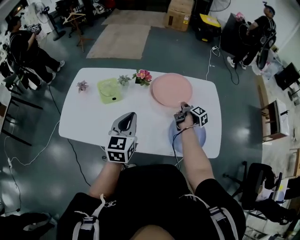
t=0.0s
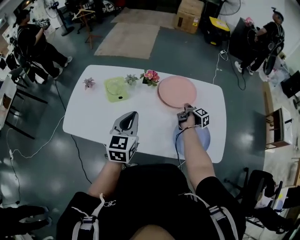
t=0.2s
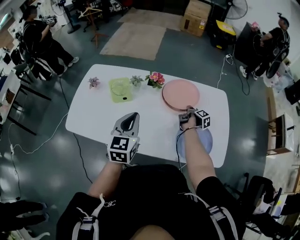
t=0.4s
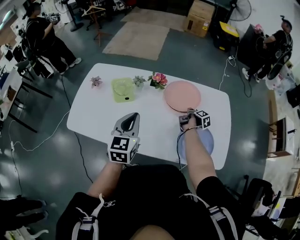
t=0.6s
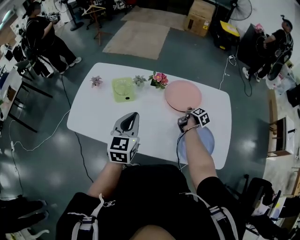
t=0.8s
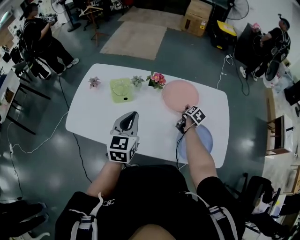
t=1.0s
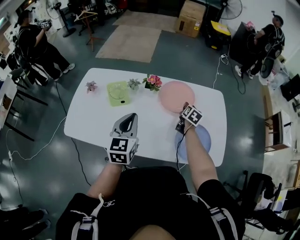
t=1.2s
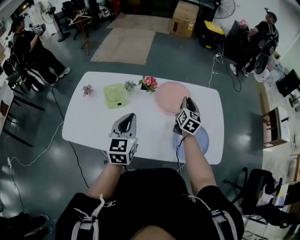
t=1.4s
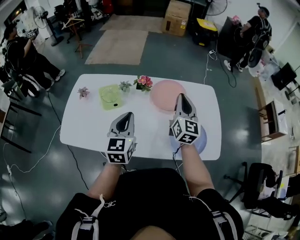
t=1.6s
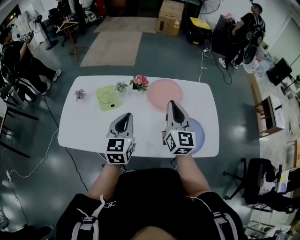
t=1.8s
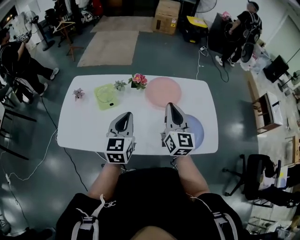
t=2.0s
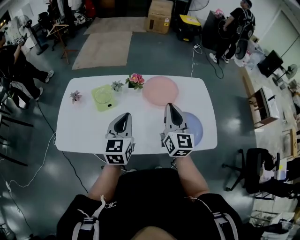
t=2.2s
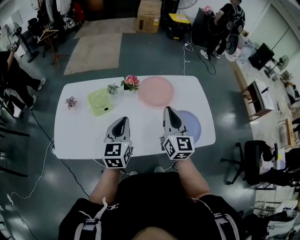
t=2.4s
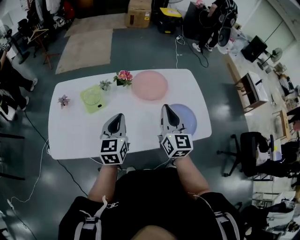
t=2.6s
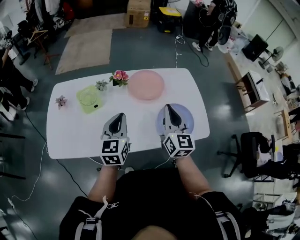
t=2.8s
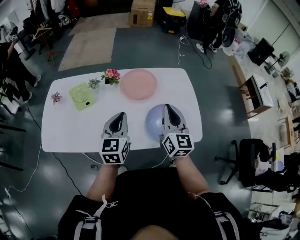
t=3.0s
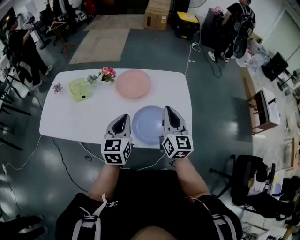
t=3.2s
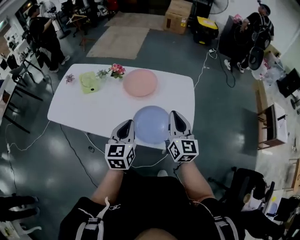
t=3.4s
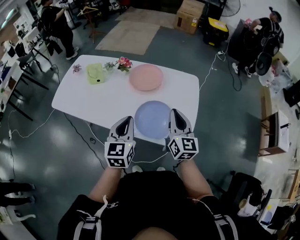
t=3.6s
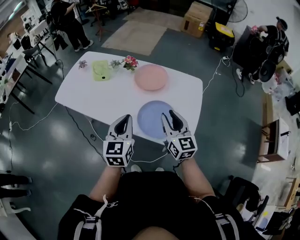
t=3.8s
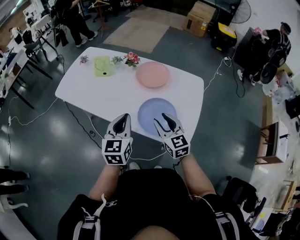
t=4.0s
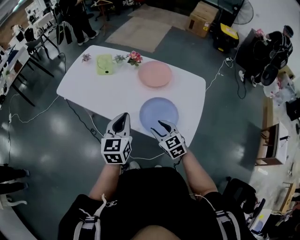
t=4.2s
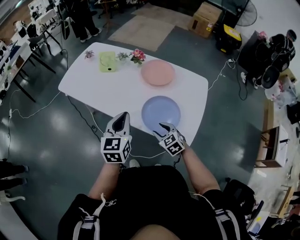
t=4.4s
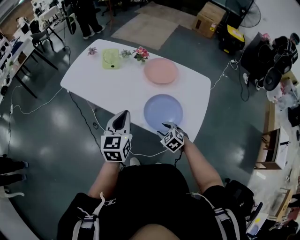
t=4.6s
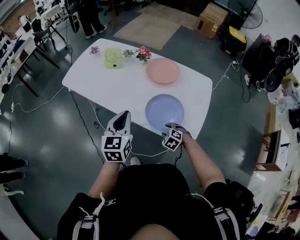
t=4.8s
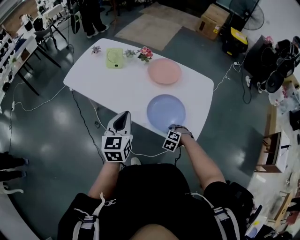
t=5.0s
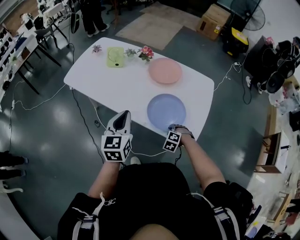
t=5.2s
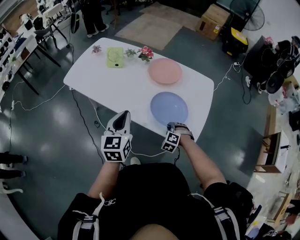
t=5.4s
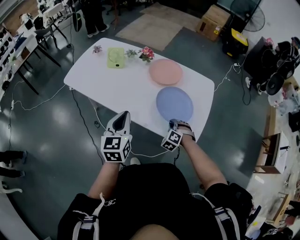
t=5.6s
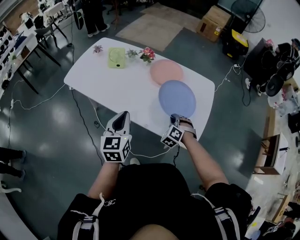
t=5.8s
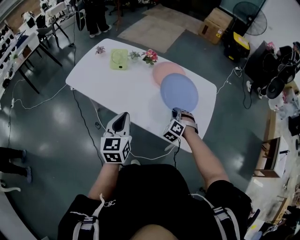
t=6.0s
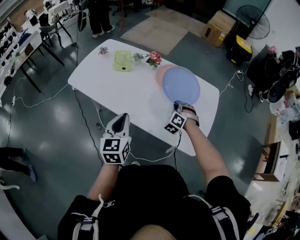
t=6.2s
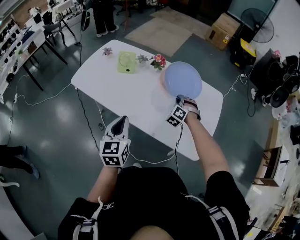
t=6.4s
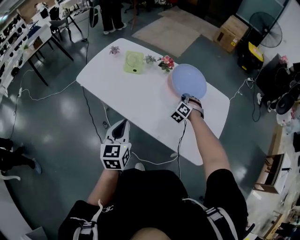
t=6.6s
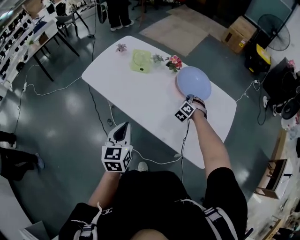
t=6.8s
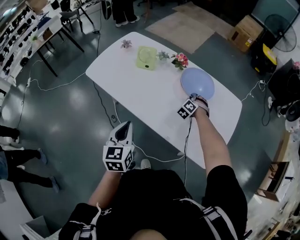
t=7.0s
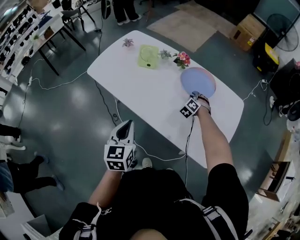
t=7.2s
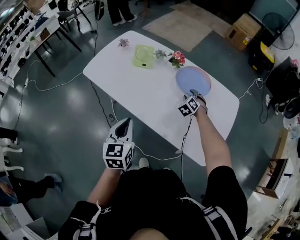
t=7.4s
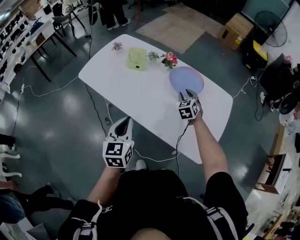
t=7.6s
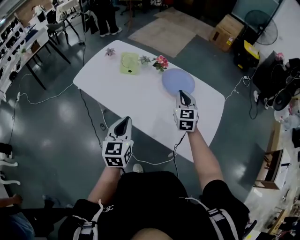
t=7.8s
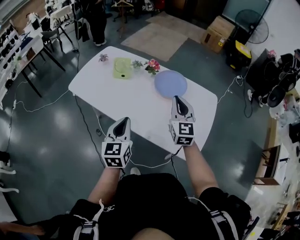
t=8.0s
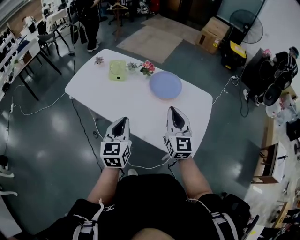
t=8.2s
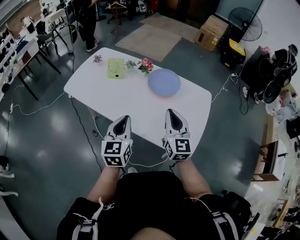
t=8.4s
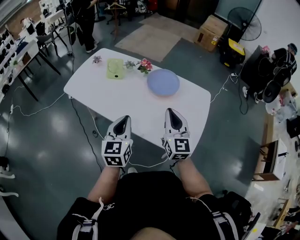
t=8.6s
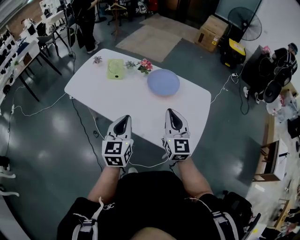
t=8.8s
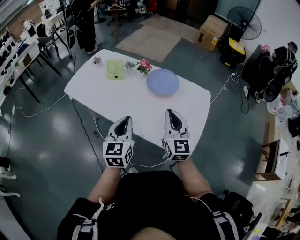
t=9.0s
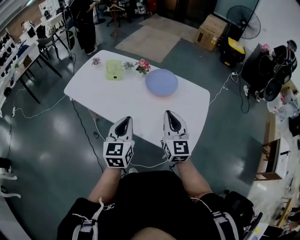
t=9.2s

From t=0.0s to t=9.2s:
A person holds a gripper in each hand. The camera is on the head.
From t=0.0s to t=1.6s: The right gripper heads upward, covering roughly 25 cm, rolls counterclockwise, seen from behind, by approximately 70 degrees, and opens, then closes again.
From t=1.6s to t=3.0s: The left gripper travels to the right by about 10 cm, while the right gripper heads backward and to the right, covering about 15 cm.
From t=3.0s to t=4.6s: The right gripper travels downward by roughly 25 cm, tilts its fingers approximately 50 degrees downward, and opens its fingers, while the left gripper moves roughly 20 cm, and rotates some 30 degrees.
From t=4.6s to t=6.2s: The right gripper is displaced forward and upward by about 20 cm, swivels approximately 40 degrees, and closes up. Meanwhile the left gripper is displaced to the left by about 5 cm.
From t=6.2s to t=7.6s: The right gripper is displaced forward and to the left by approximately 10 cm, turns by approximately 40 degrees, and opens.
From t=7.6s to t=9.2s: The left gripper goes roughly 15 cm to the right, while the right gripper is displaced backward and upward by approximately 30 cm, tilts its fingers roughly 30 degrees upward, and closes its fingers.

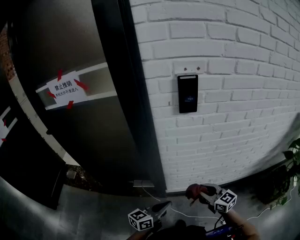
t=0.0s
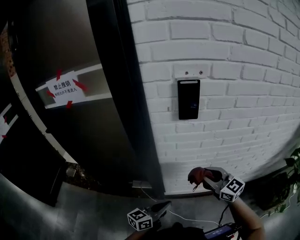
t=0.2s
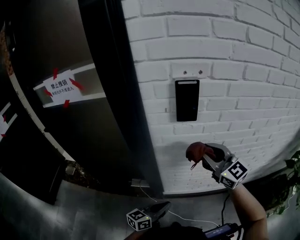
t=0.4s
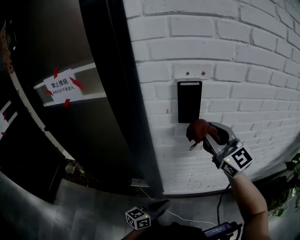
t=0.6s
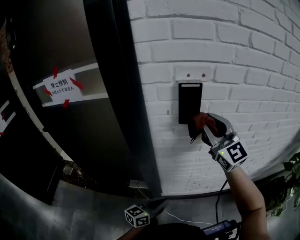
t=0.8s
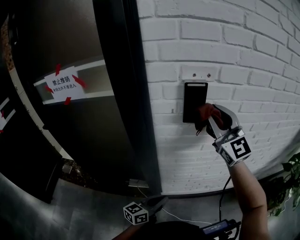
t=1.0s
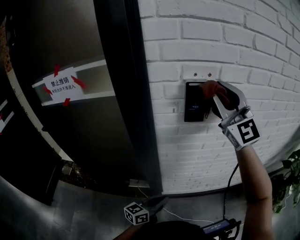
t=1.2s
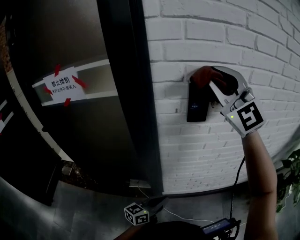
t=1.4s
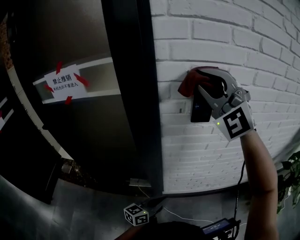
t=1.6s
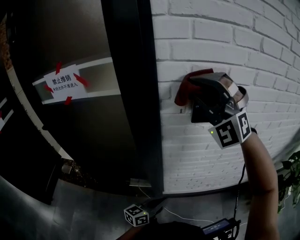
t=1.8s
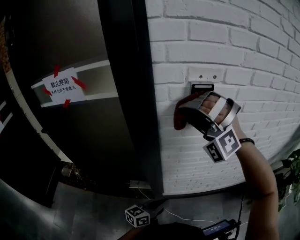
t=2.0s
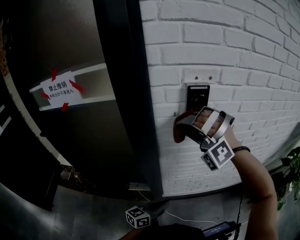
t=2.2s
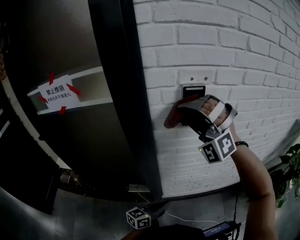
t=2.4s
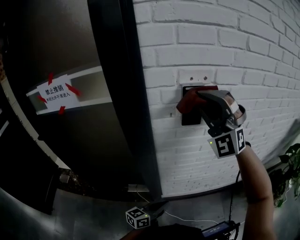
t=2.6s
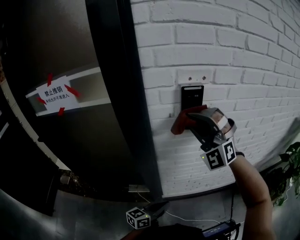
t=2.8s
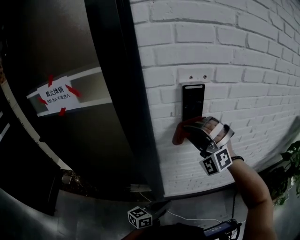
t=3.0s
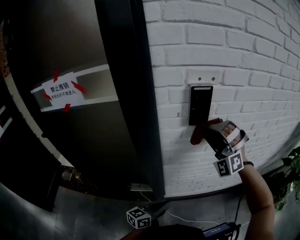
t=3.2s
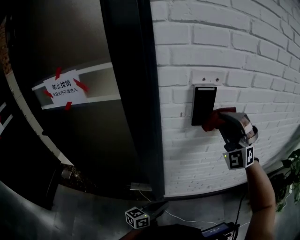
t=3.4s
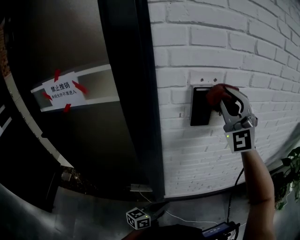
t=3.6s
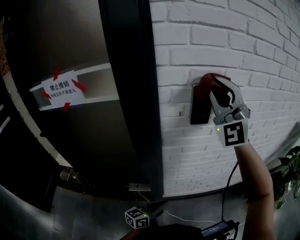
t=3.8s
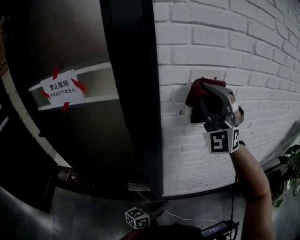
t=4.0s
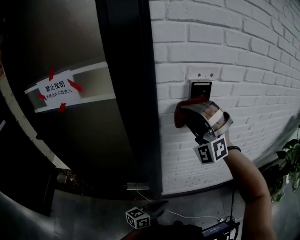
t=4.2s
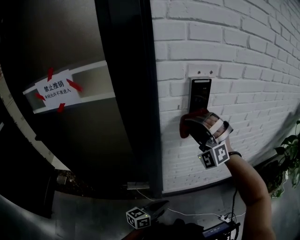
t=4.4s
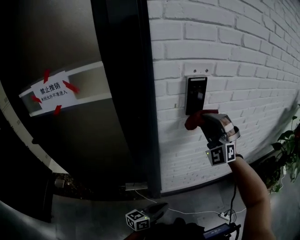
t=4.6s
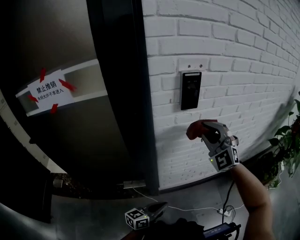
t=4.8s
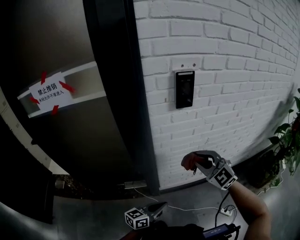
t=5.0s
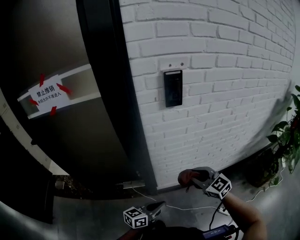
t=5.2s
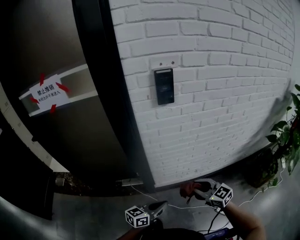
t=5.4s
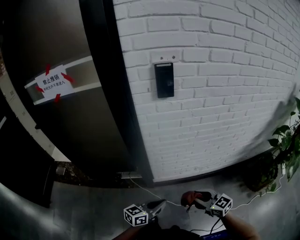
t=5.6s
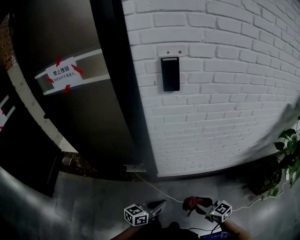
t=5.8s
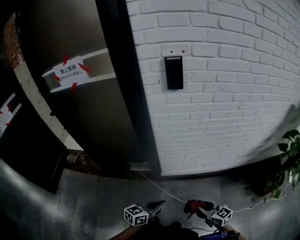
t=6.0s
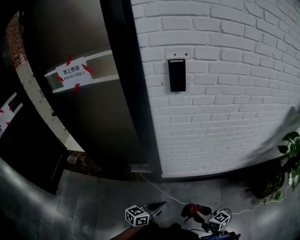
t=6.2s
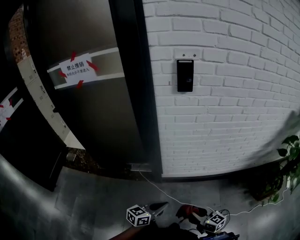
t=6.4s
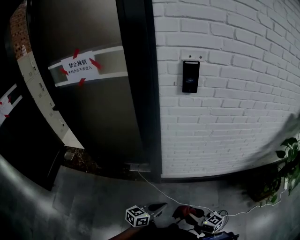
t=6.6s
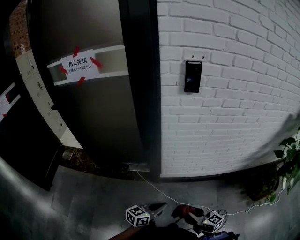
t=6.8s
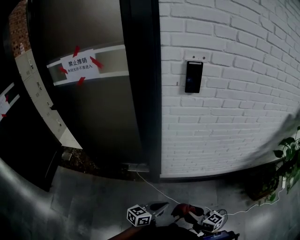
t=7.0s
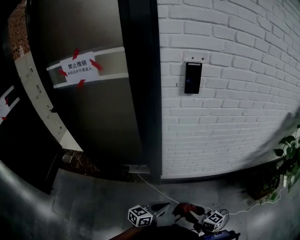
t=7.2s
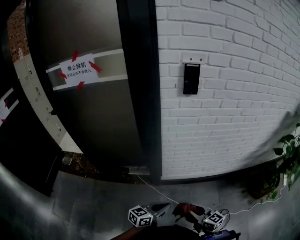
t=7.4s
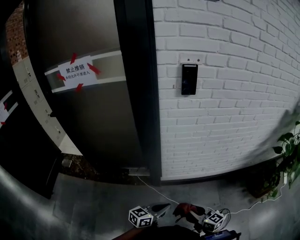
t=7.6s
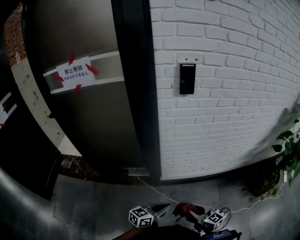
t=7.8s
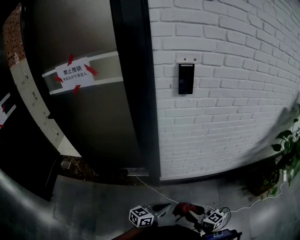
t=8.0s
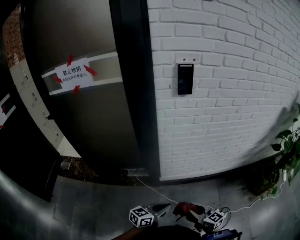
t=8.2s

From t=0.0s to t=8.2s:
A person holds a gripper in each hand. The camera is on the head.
From t=0.0s to t=1.6s: The left gripper is displaced forward by approximately 5 cm. The right gripper moves upward, approximately 50 cm, and rotates around the line of its fingers by roughly 80 degrees, counterclockwise from behind.
From t=1.6s to t=3.2s: The right gripper moves up and down over roughly 20 cm, changing direction 2 times, and rotates about 30 degrees.
From t=3.2s to t=5.0s: The right gripper shifts some 20 cm backward and downward, and rotates around the line of its fingers by roughly 50 degrees, clockwise from behind, while the left gripper travels backward by about 10 cm.
From t=5.0s to t=6.6s: The left gripper moves backward and to the right, roughly 15 cm. Meanwhile the right gripper goes roughly 35 cm backward and downward, and rotates around the line of its fingers by some 60 degrees, clockwise from behind.
From t=6.6s to t=8.2s: There are only small adjustments of the grippers.

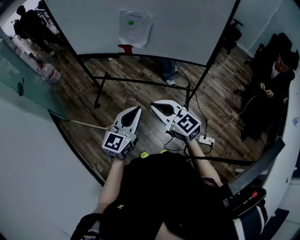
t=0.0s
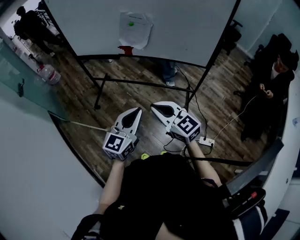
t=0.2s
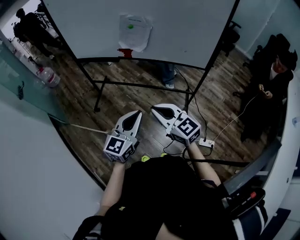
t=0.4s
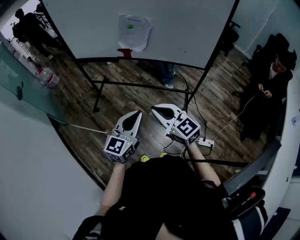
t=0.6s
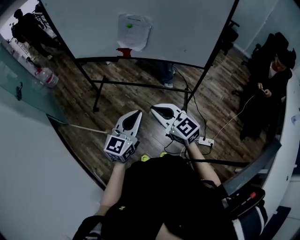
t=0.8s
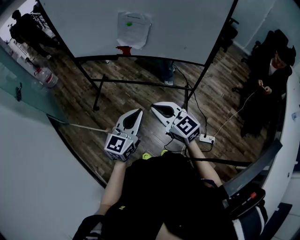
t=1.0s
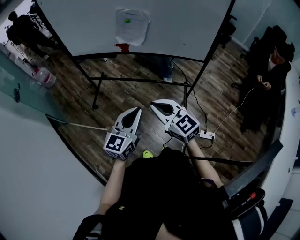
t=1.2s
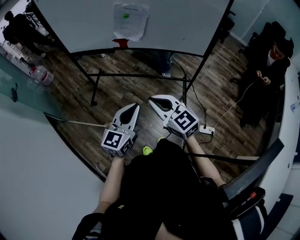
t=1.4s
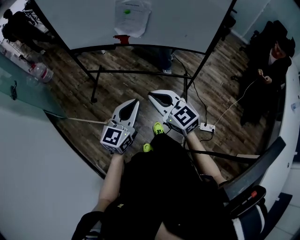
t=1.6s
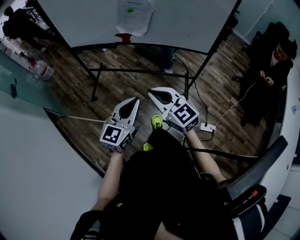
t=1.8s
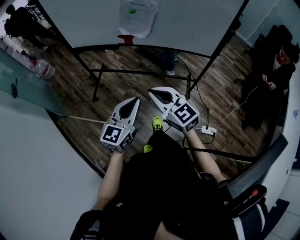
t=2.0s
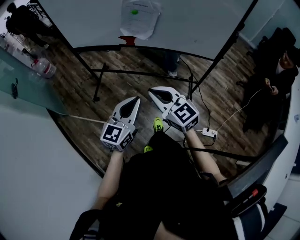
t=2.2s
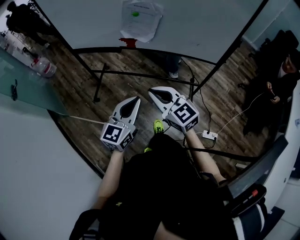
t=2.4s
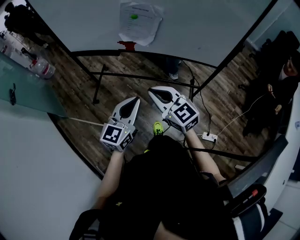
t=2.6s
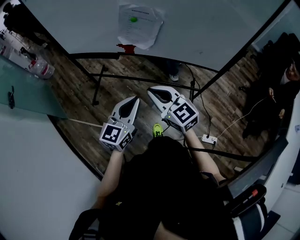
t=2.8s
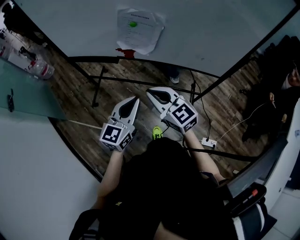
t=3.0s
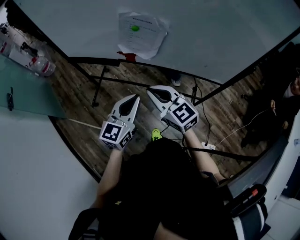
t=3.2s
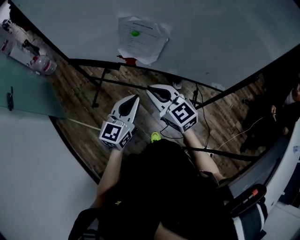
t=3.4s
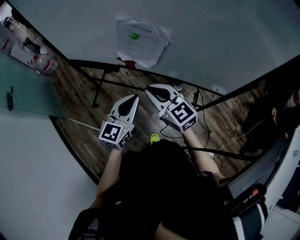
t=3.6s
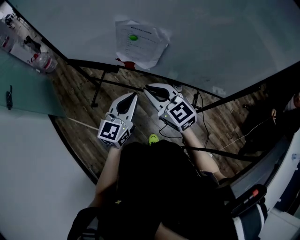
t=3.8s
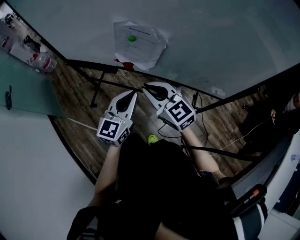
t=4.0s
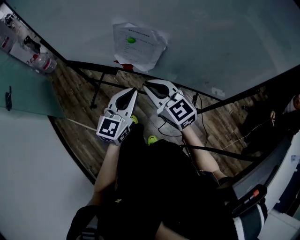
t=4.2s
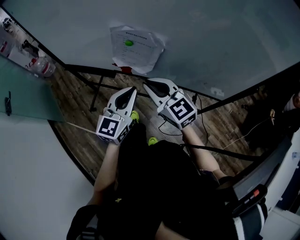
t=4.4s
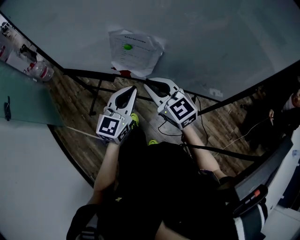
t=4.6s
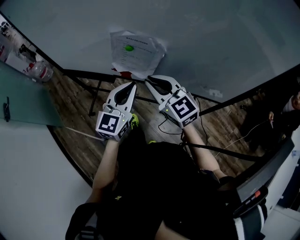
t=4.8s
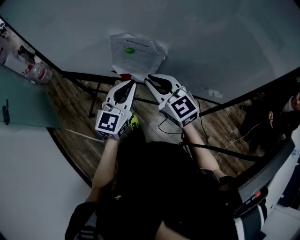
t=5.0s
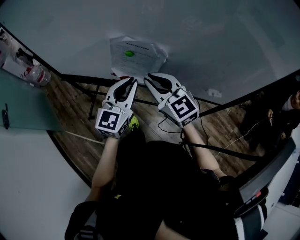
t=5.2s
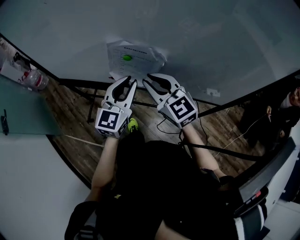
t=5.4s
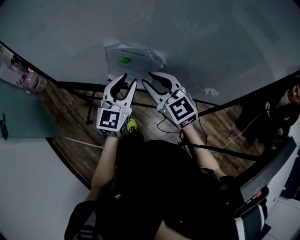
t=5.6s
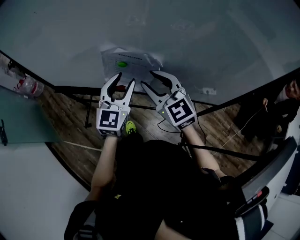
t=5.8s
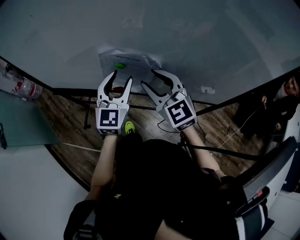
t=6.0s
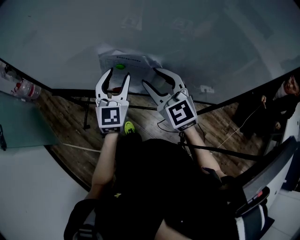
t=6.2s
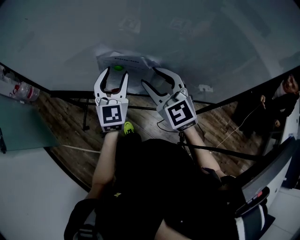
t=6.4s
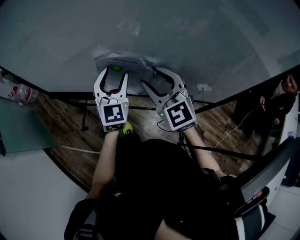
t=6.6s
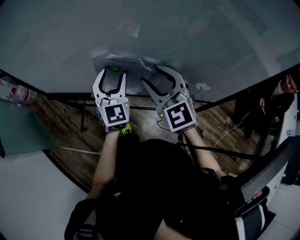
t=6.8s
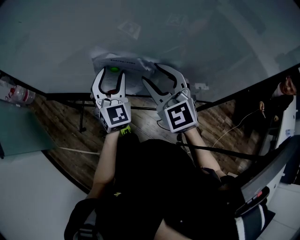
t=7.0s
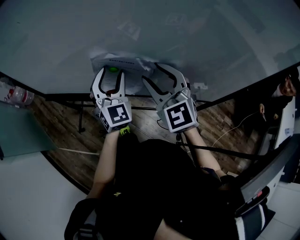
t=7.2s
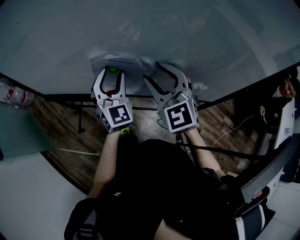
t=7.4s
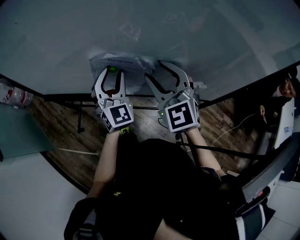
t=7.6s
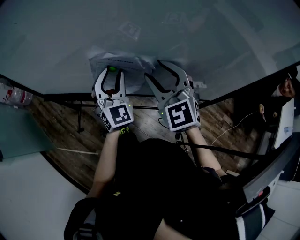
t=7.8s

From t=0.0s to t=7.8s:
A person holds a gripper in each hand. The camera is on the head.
From t=0.0s to t=1.6s: There are only small adjustments of the grippers.
From t=1.6s to t=3.2s: The two grippers go roughly 25 cm forward.
From t=3.2s to t=4.6s: Both grippers travel together forward, some 10 cm.
From t=4.6s to t=6.2s: The right gripper shifts roughly 10 cm forward, and opens up; the left gripper goes about 15 cm forward, and opens up.
From t=6.2s to t=7.8s: The grippers make only small movements.
